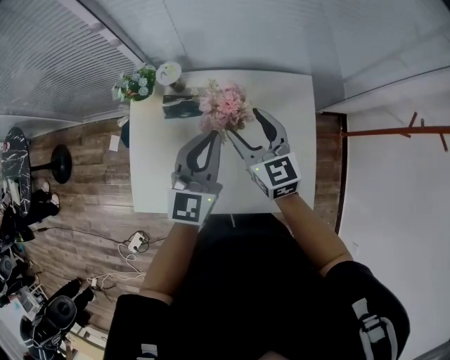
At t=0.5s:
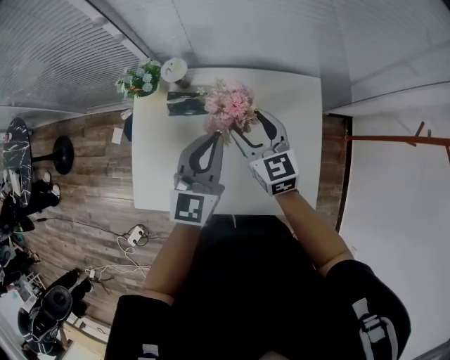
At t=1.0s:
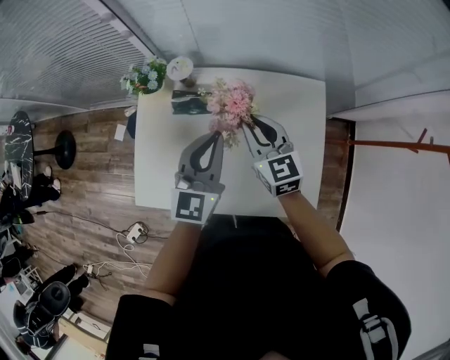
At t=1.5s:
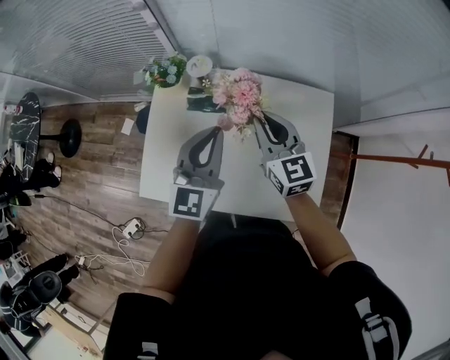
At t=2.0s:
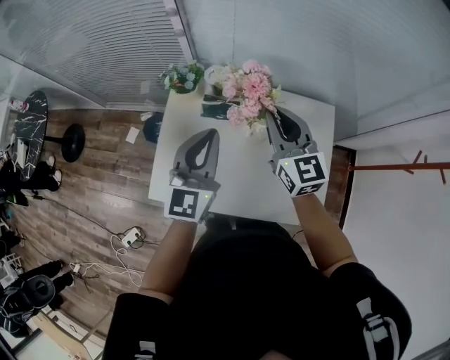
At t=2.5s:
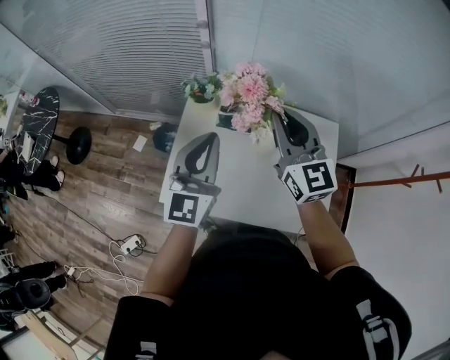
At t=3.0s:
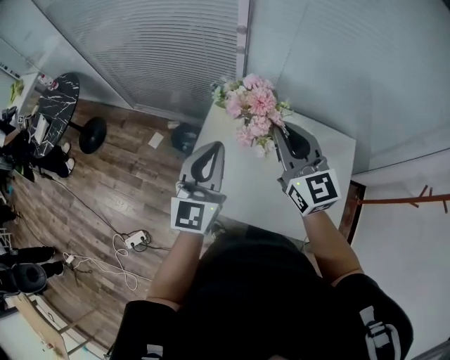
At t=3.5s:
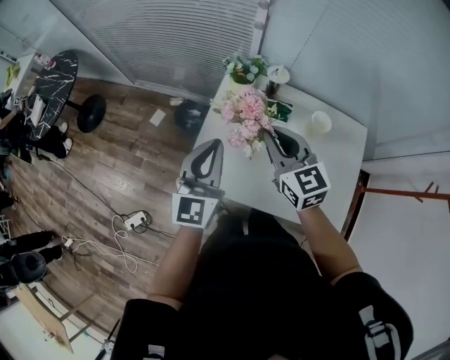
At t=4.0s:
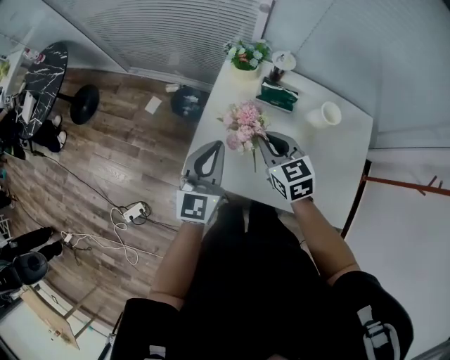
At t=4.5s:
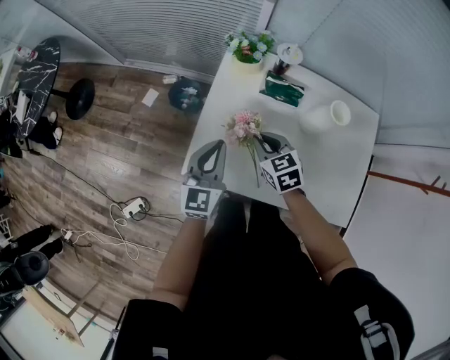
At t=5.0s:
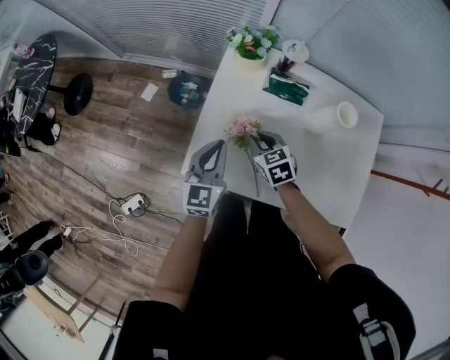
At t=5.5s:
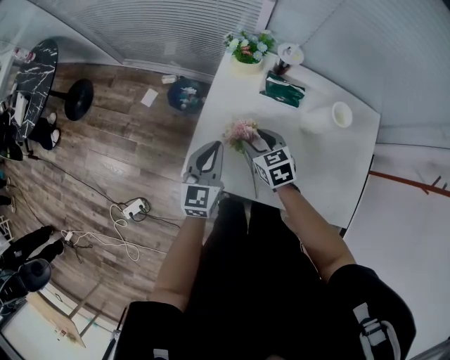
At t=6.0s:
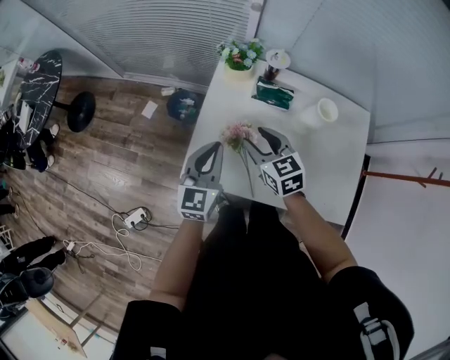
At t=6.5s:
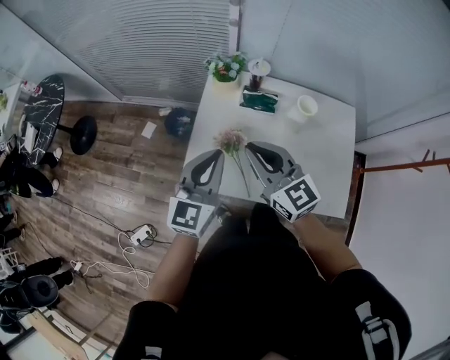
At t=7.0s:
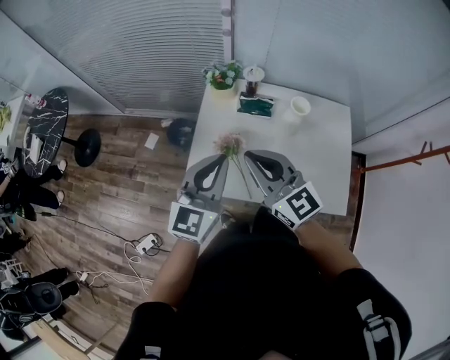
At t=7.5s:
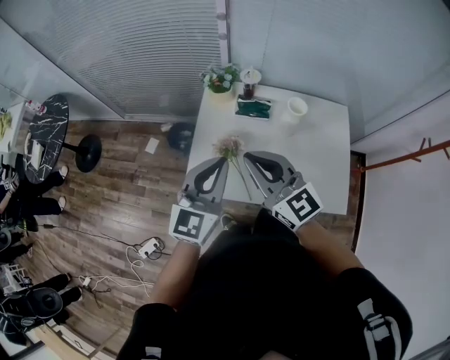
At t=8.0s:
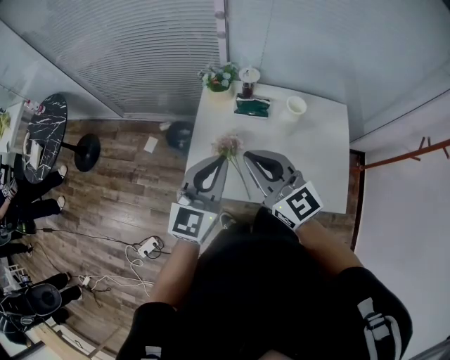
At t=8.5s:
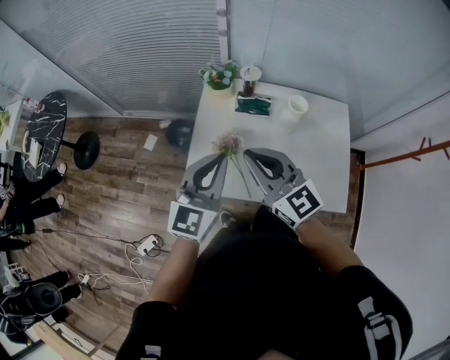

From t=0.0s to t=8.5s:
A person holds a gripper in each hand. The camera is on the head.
From t=0.0s to t=2.0s: The left gripper shifts about 15 cm to the left and upward. The right gripper moves upward and to the left, roughly 10 cm, and closes its fingers.
From t=2.0s to t=4.0s: The grippers both shift to the left and downward by approximately 25 cm. The right gripper changes its angle by approximately 30 degrees.
From t=4.0s to t=6.5s: The left gripper shifts about 5 cm upward. Meanwhile the right gripper goes approximately 15 cm upward and backward, rotates some 30 degrees, and opens, then closes once more.
From t=6.5s to t=8.5s: The right gripper ends up about 5 cm from where it was, while the left gripper ends up about 5 cm from where it was.

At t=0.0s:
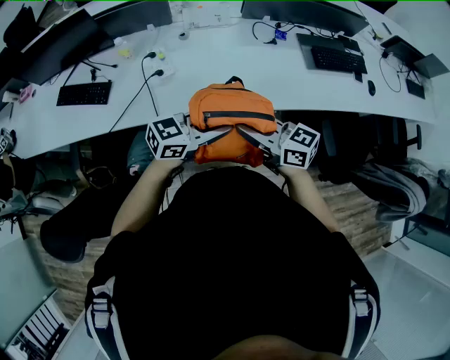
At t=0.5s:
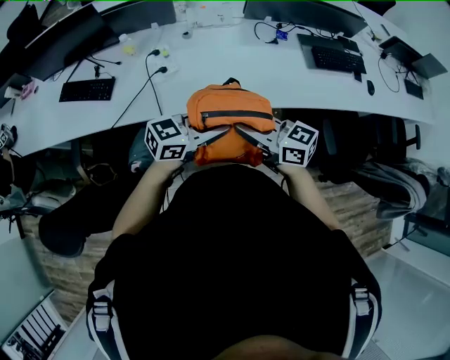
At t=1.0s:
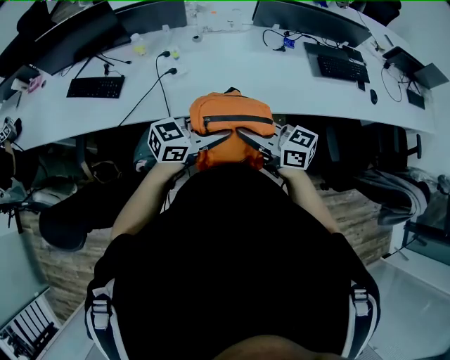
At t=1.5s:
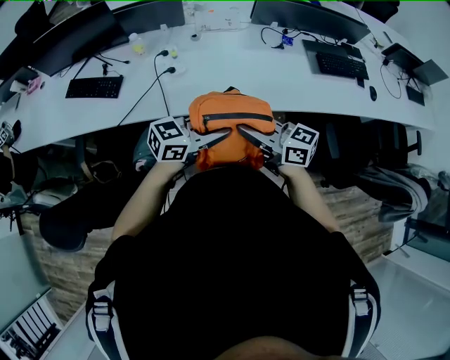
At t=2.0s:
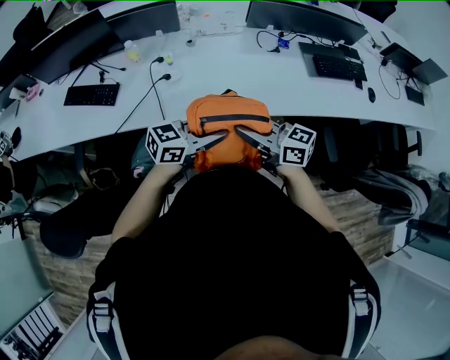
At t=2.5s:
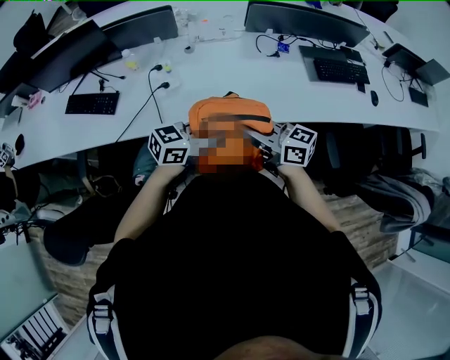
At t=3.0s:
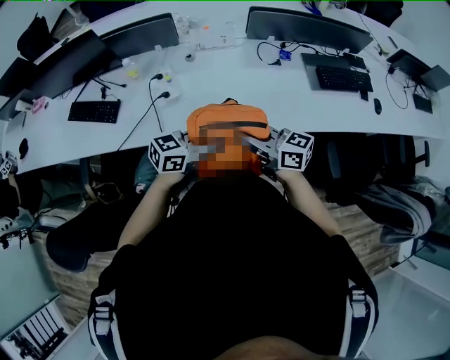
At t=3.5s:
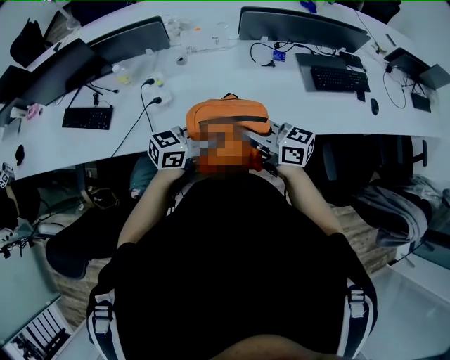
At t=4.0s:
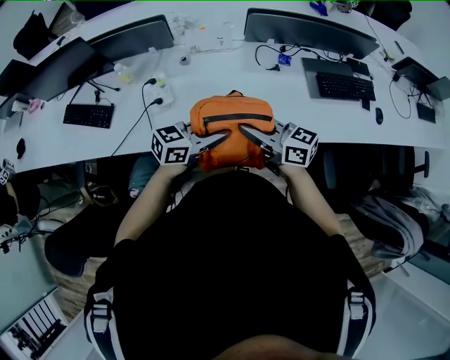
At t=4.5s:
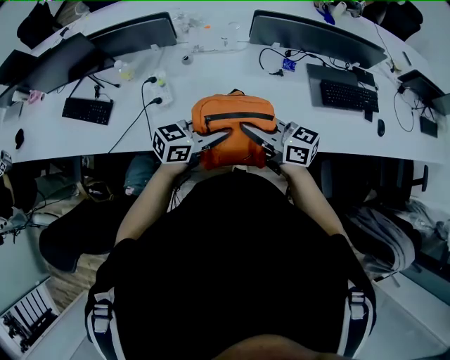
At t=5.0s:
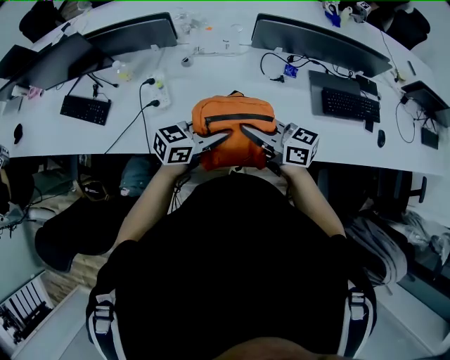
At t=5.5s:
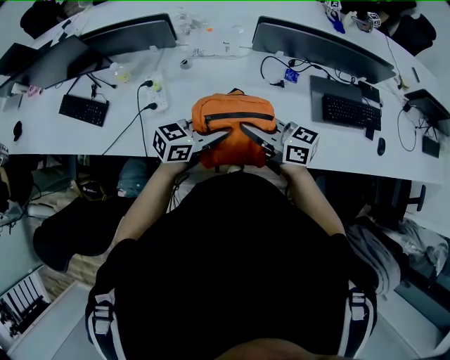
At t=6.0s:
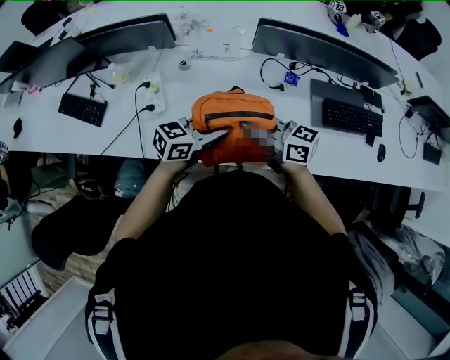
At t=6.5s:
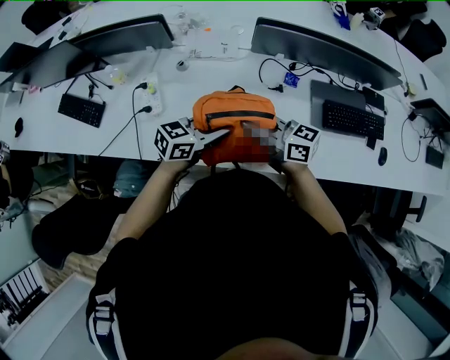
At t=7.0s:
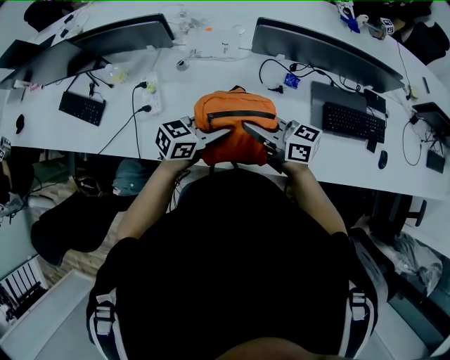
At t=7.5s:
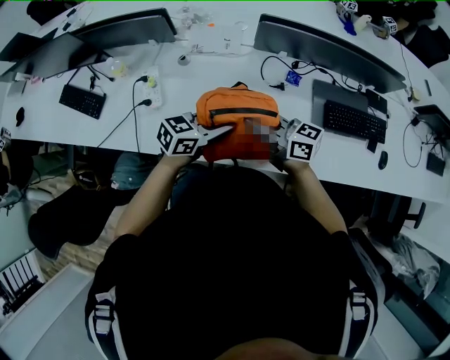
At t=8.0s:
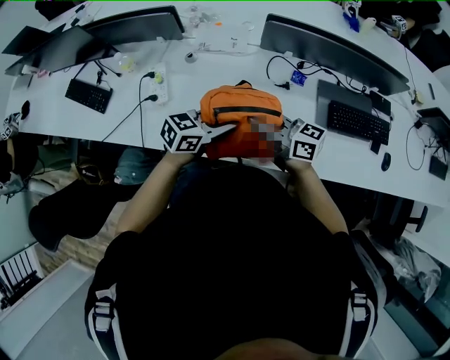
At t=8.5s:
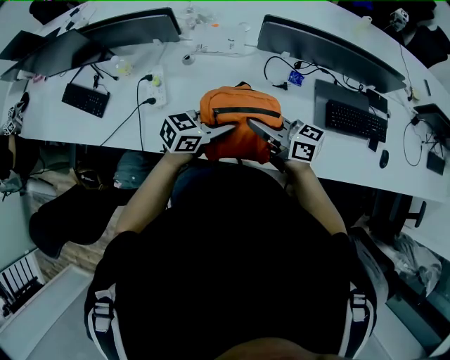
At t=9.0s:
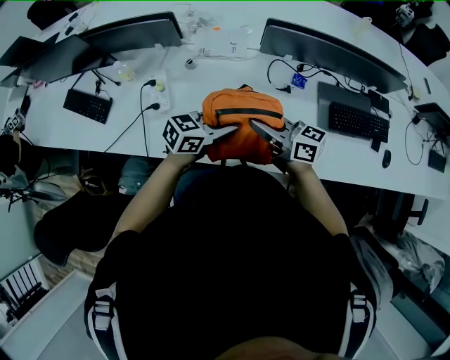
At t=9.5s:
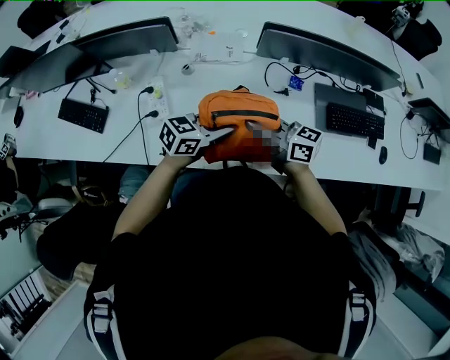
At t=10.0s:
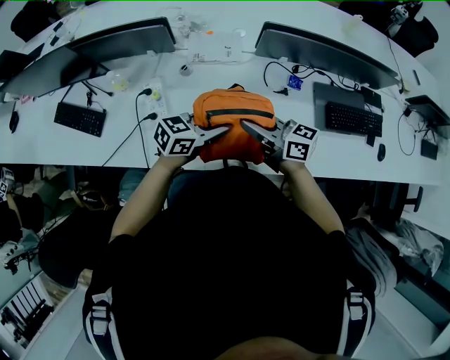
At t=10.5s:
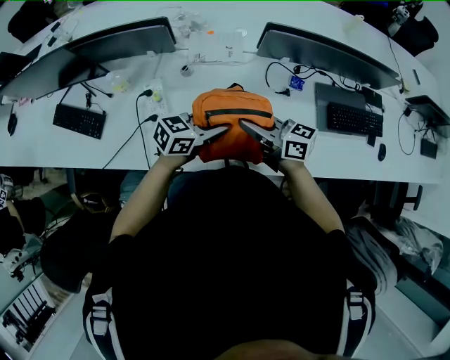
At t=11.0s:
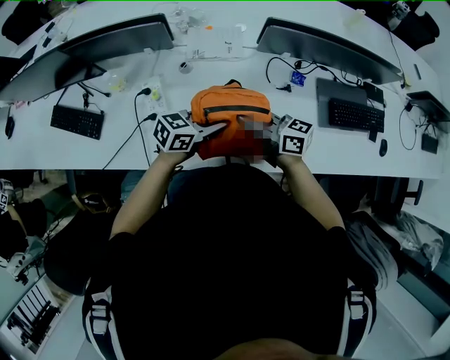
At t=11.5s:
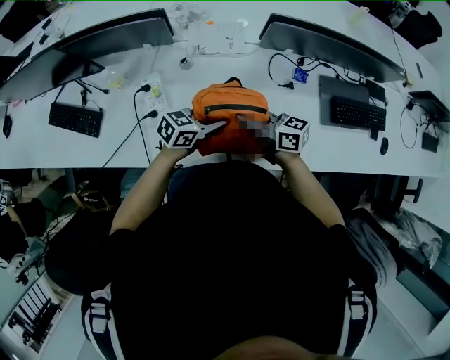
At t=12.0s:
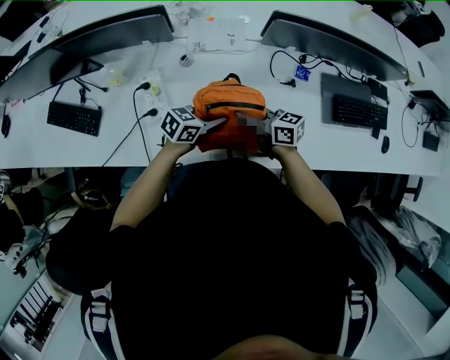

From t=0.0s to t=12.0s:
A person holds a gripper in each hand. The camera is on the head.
From t=0.0s to t=2.0s: The grippers move only a little.
From t=2.0s to t=4.0s: The left gripper ends up approximately 15 cm from where it was. The right gripper moves about 15 cm.
From t=4.0s to t=6.0s: The right gripper changes place by some 15 cm; the left gripper changes place by roughly 15 cm.
From t=6.0s to t=8.0s: The grippers move only a little.
From t=8.0s to t=10.0s: The right gripper changes place by roughly 10 cm. The left gripper changes place by some 10 cm.
From t=10.0s to t=12.0s: The two grippers go about 10 cm downward.

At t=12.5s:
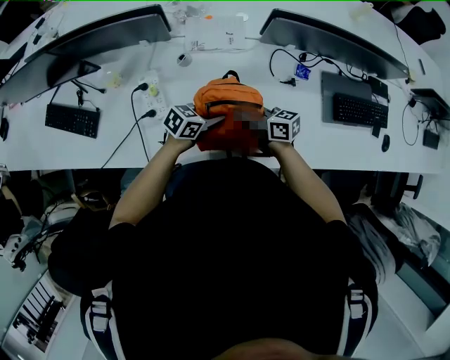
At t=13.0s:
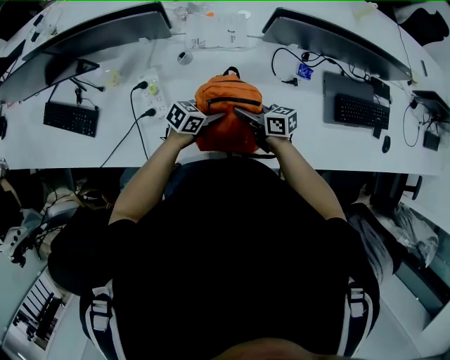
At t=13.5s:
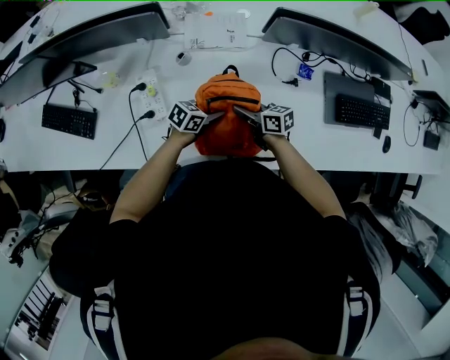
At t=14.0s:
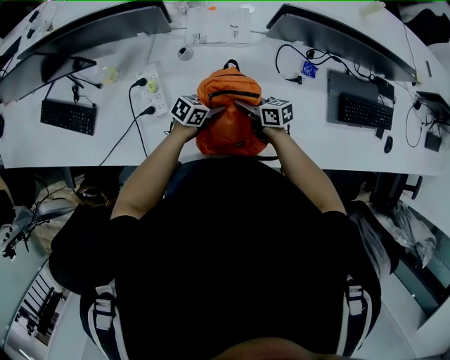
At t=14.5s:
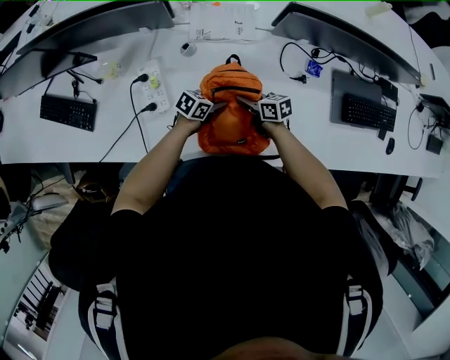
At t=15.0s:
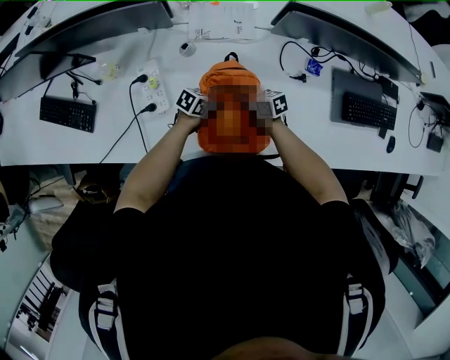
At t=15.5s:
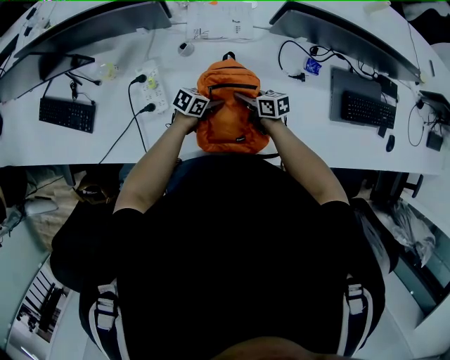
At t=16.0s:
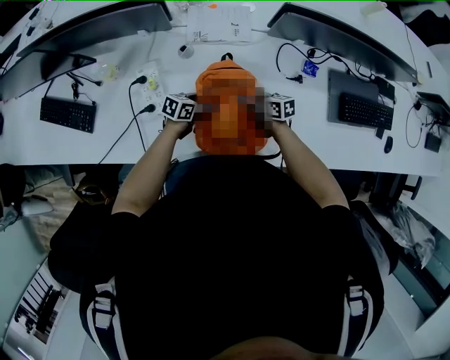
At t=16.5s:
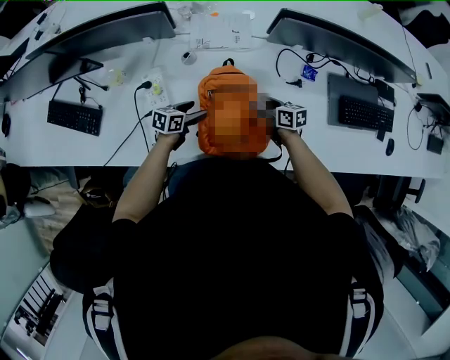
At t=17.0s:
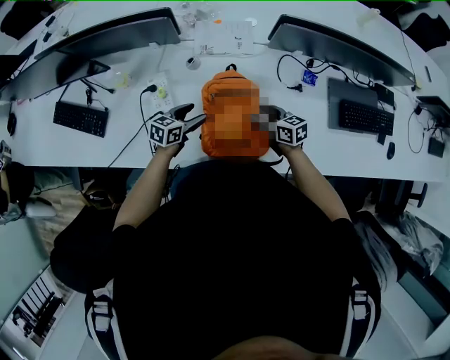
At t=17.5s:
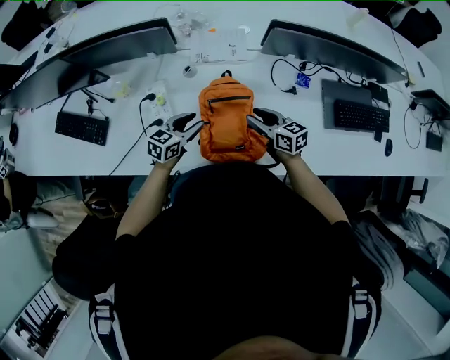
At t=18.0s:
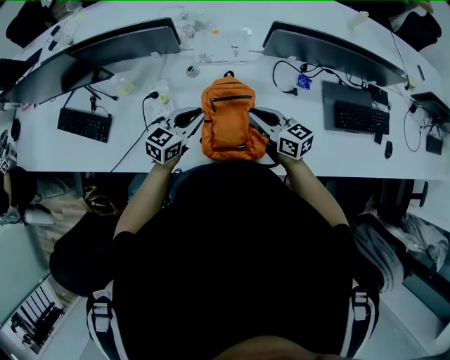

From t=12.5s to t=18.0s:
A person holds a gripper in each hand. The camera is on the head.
From t=12.5s to t=14.5s: The two grippers go some 15 cm downward.
From t=14.5s to t=16.0s: The right gripper opens its fingers. The left gripper opens up.
From t=16.0s to t=18.0s: Both grippers travel together upward, roughly 20 cm. The left gripper turns by some 40 degrees, and closes. The right gripper rotates approximately 30 degrees, and closes its fingers.

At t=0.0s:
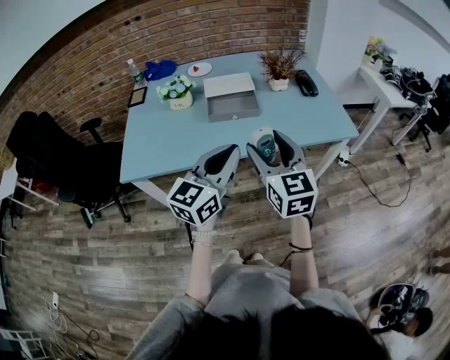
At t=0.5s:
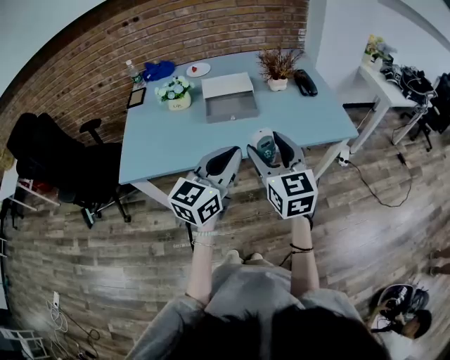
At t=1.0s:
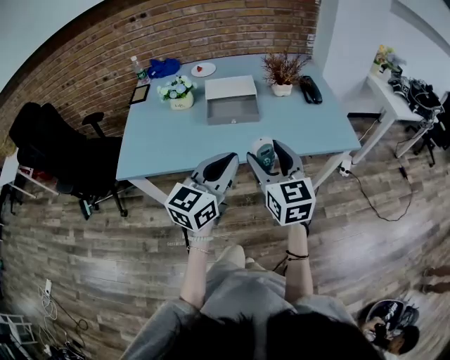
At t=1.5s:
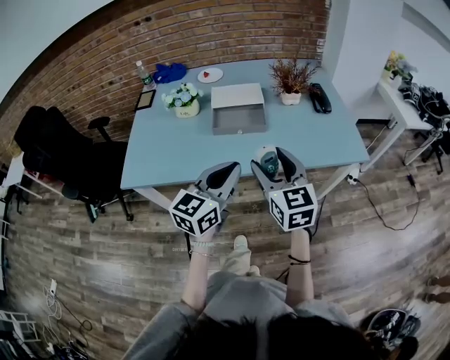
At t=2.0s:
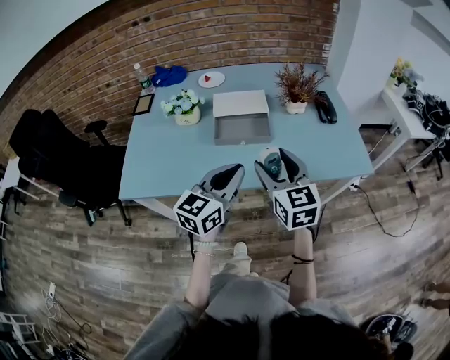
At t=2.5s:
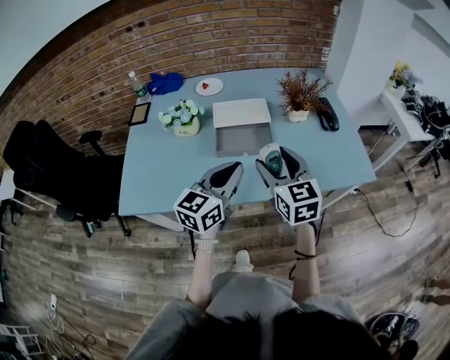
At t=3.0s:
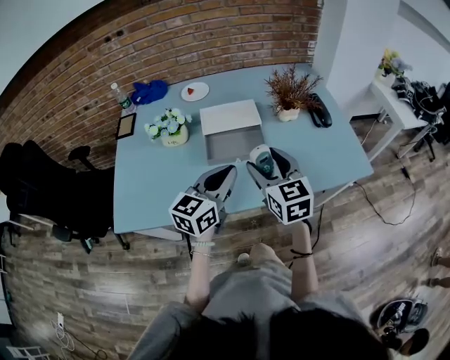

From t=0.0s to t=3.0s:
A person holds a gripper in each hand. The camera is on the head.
From t=0.0s to t=1.5s: Both grippers travel together forward, some 5 cm.
From t=1.5s to t=3.0s: The grippers both shift forward by approximately 15 cm.
